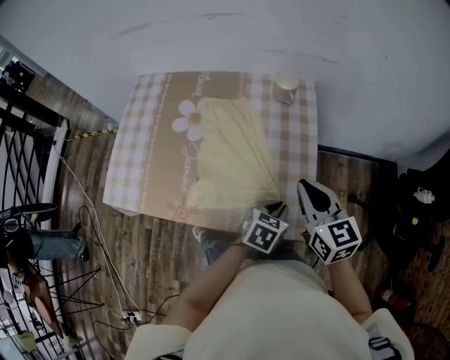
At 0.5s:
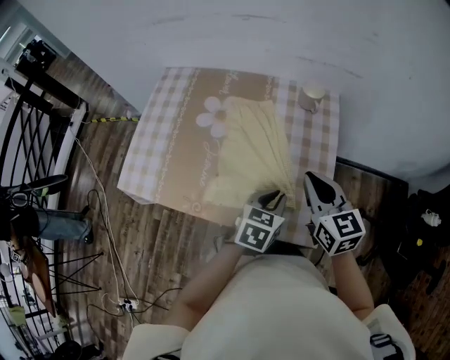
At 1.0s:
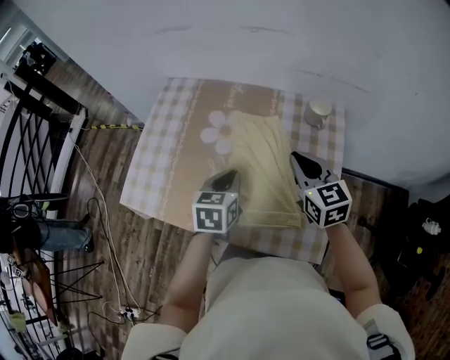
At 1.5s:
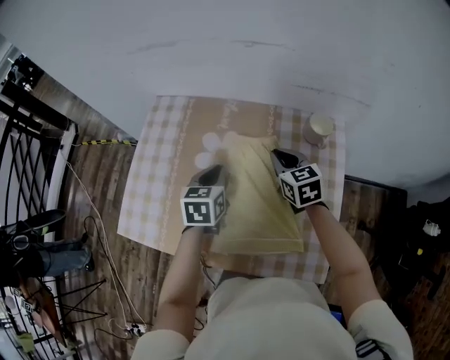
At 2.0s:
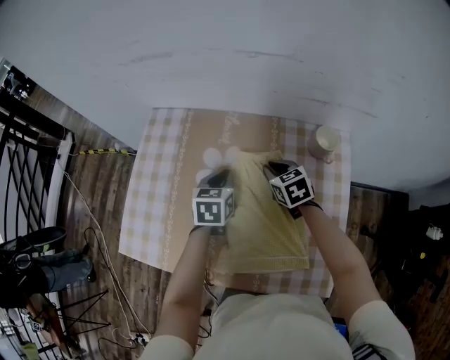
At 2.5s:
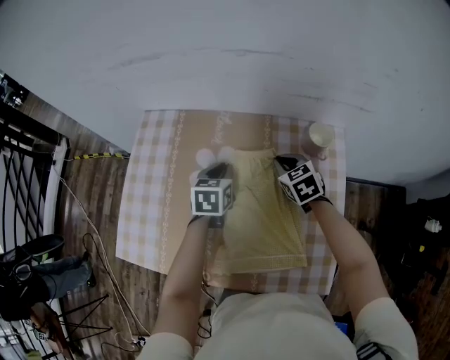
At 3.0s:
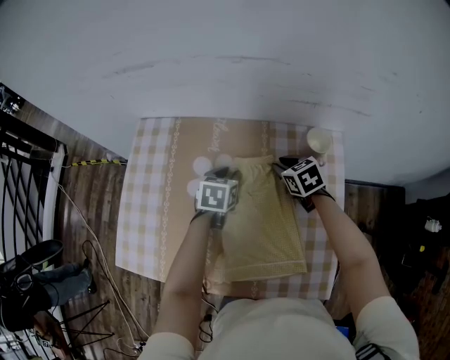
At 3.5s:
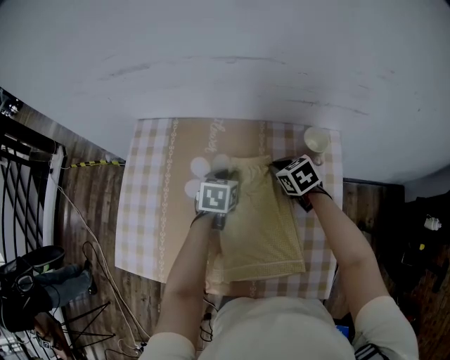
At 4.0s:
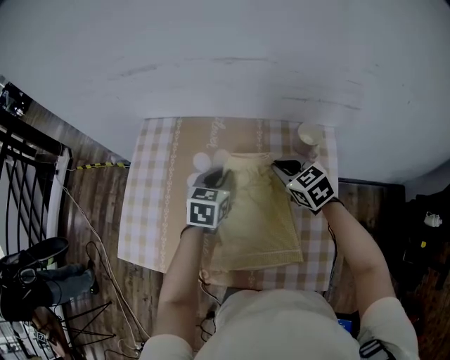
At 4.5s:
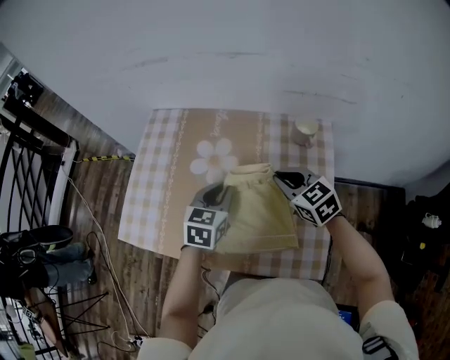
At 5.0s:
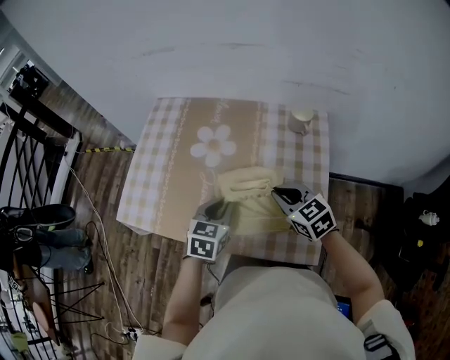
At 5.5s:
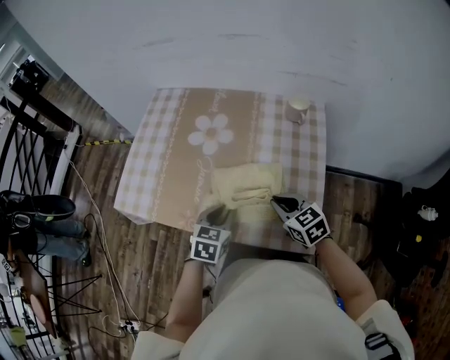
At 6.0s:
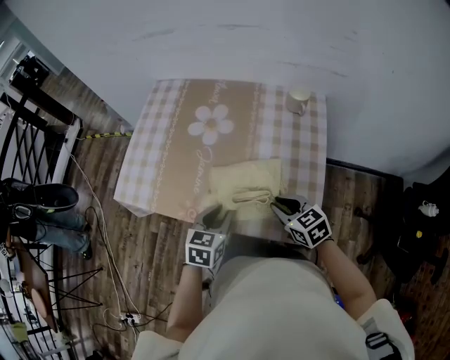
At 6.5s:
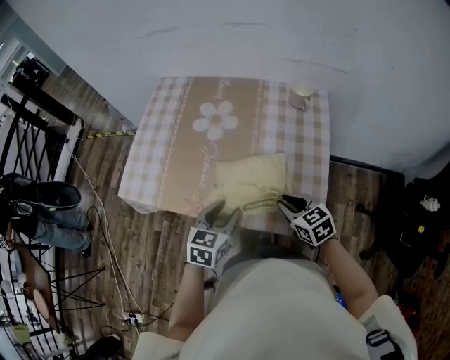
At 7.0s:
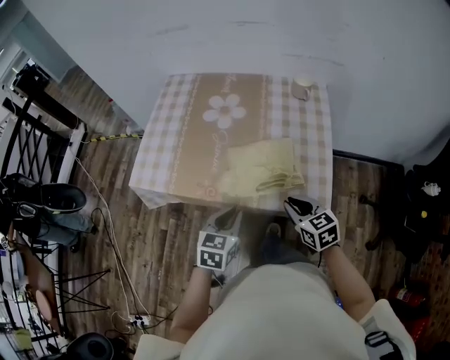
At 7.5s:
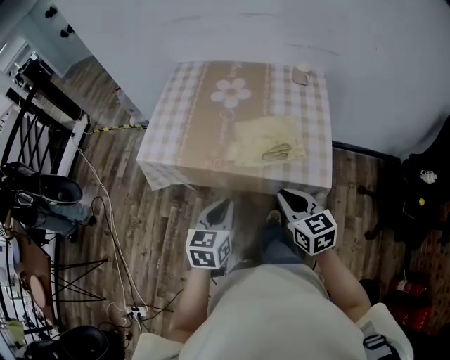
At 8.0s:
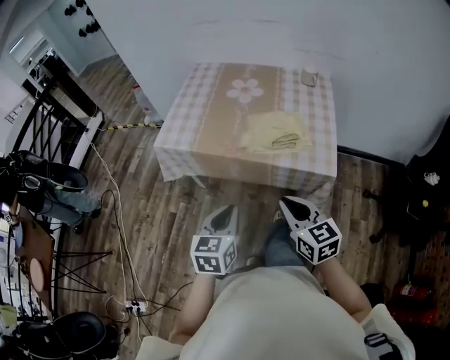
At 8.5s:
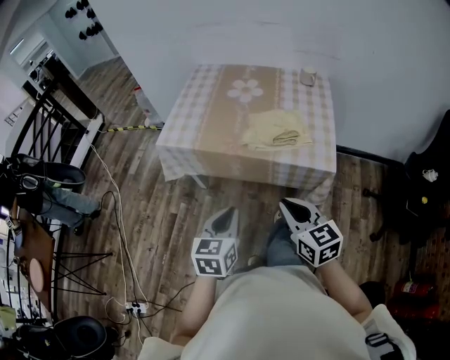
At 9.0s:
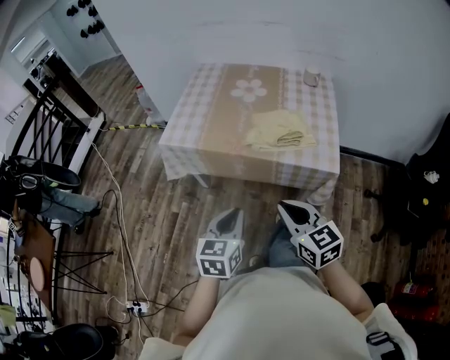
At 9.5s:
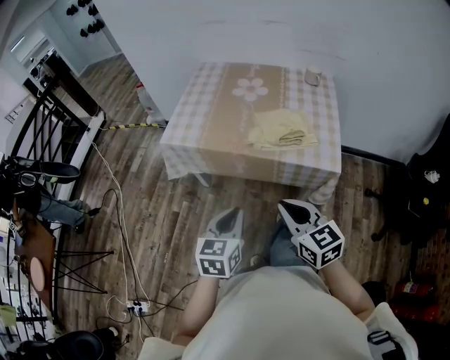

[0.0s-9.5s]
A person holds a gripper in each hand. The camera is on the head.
0.0s to 2.0s: The left gripper heads forward and to the left, covering about 40 cm, and rotates about 30 degrees, while the right gripper moves forward, downward and to the left, some 35 cm, and rotates about 30 degrees.
2.0s to 4.0s: The right gripper travels upward by some 10 cm.
4.0s to 5.5s: Both grippers move backward, about 25 cm.
5.5s to 7.5s: The right gripper moves backward and to the left, some 20 cm. Meanwhile the left gripper is displaced backward, to the left and upward by about 25 cm, and opens, then closes again.
7.5s to 9.5s: The two grippers go approximately 15 cm backward and to the left.

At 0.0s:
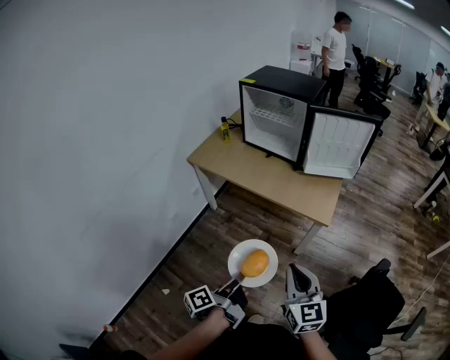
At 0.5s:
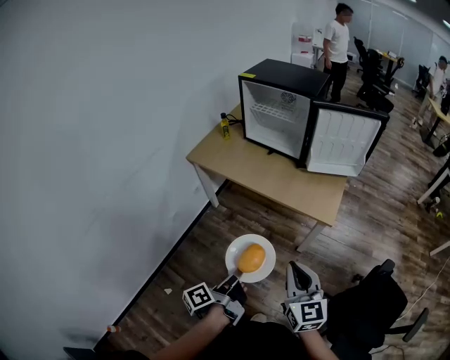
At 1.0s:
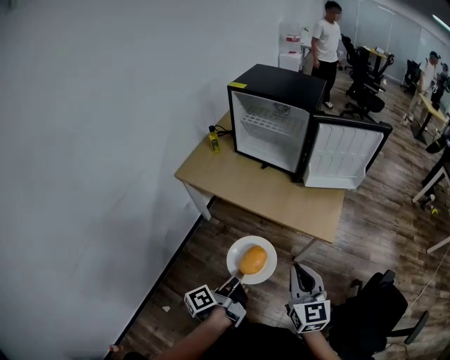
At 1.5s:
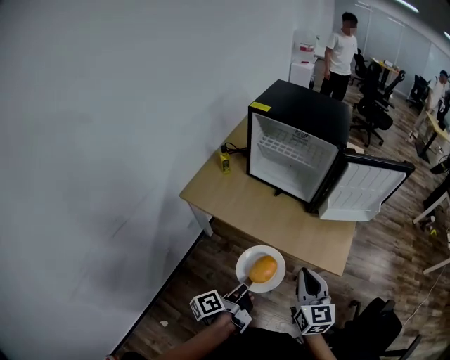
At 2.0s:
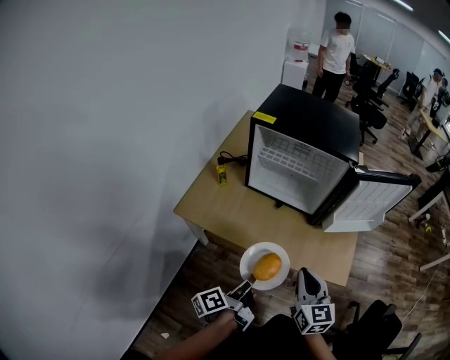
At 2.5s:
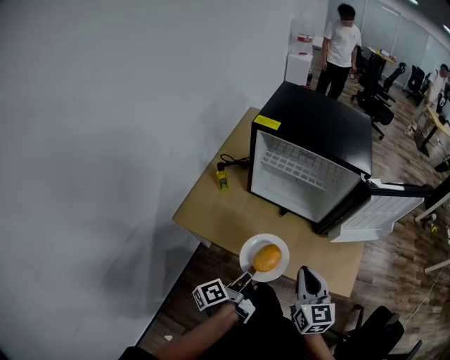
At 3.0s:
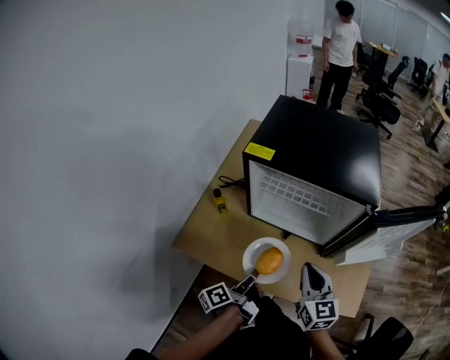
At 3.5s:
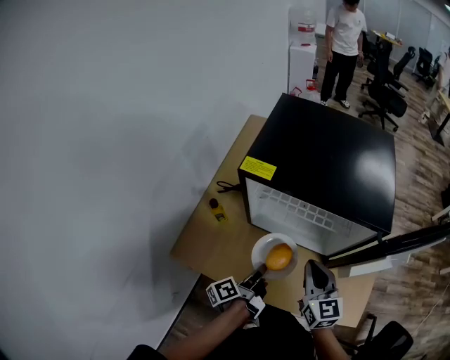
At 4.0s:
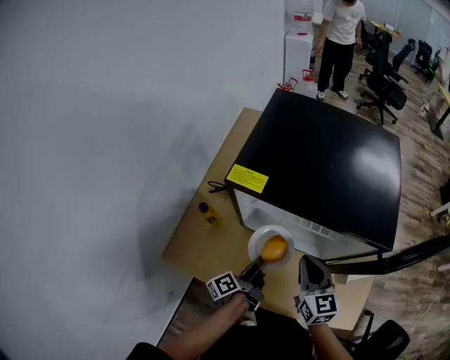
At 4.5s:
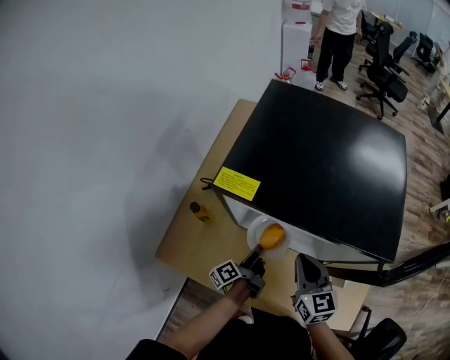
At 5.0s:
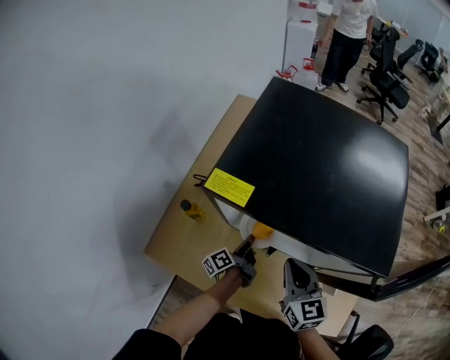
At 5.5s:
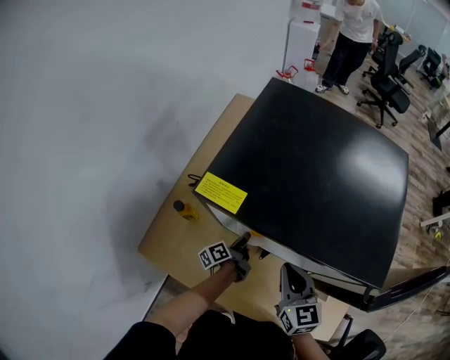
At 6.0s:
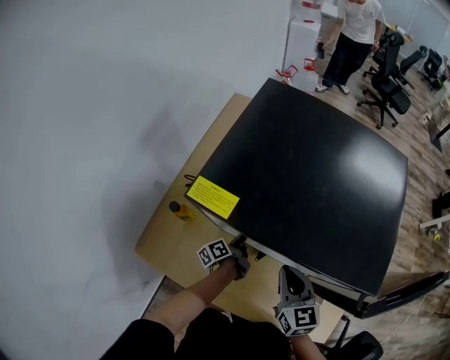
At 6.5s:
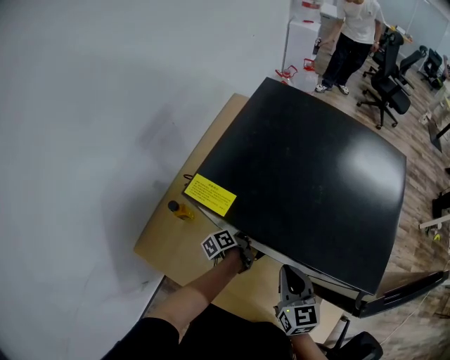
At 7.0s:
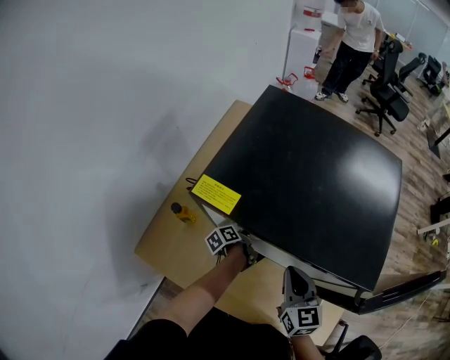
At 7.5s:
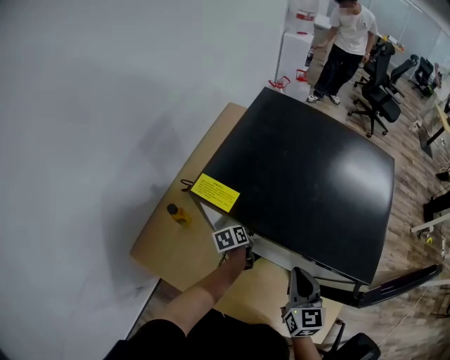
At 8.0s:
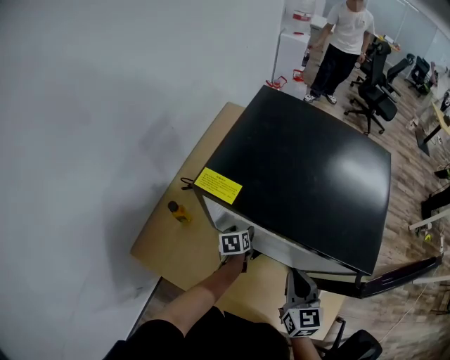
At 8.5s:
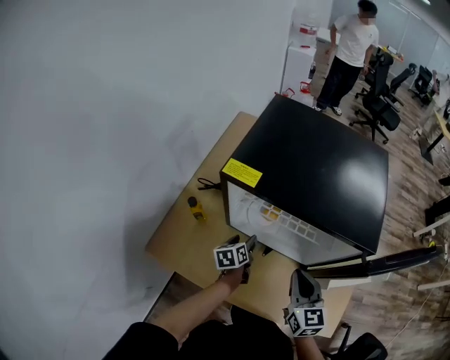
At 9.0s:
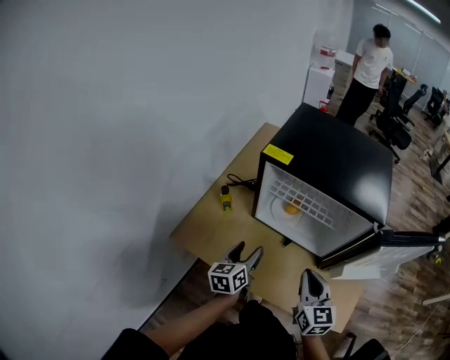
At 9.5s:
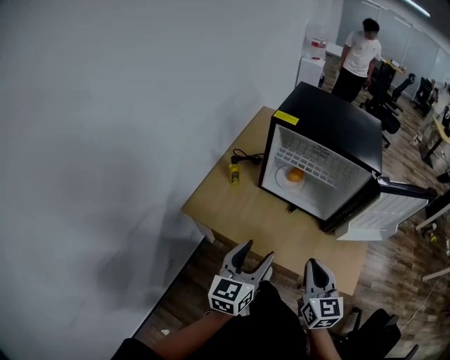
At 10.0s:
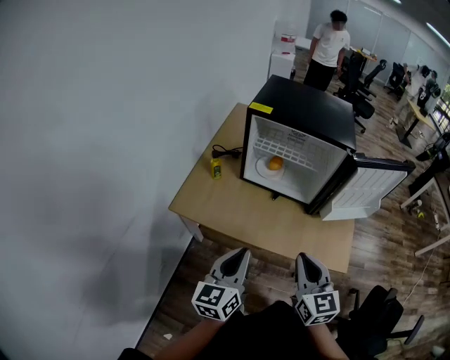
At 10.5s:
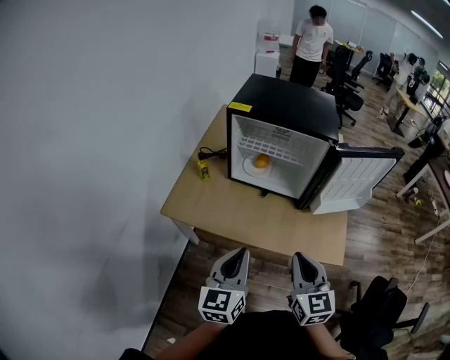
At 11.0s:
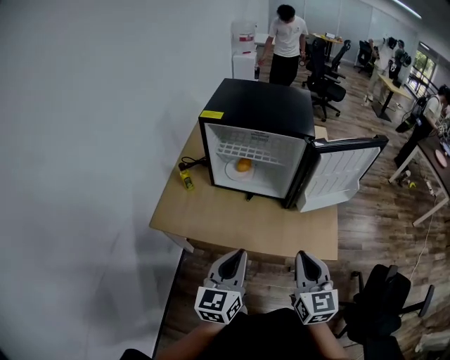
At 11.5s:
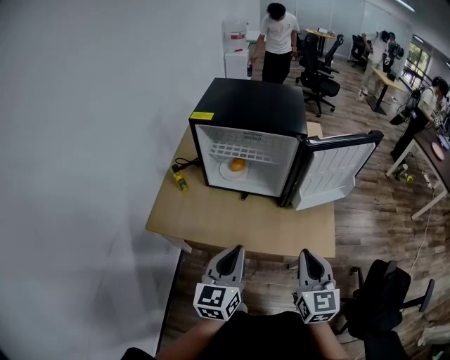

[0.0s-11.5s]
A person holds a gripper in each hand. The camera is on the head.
0.0s to 2.0s: The two grippers go about 35 cm forward.
2.0s to 4.0s: Both grippers move forward, approximately 35 cm.
4.0s to 6.0s: The left gripper heads downward and forward, covering roughly 20 cm. Meanwhile the right gripper moves some 5 cm.
6.0s to 7.5s: The left gripper rotates about 30 degrees, and opens its fingers.
7.5s to 9.5s: The left gripper heads backward and upward, covering approximately 50 cm, and angles its fingers upward, by some 30 degrees, while the right gripper shifts some 30 cm backward.
9.5s to 11.5s: The left gripper is displaced to the right by roughly 10 cm, and closes; the right gripper goes some 10 cm to the right and backward.

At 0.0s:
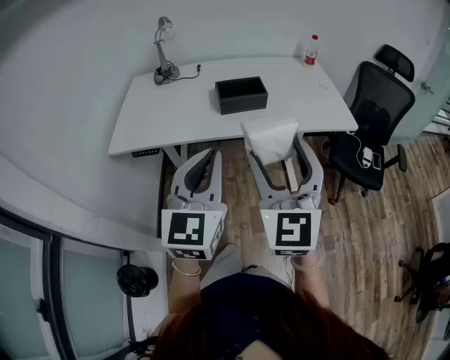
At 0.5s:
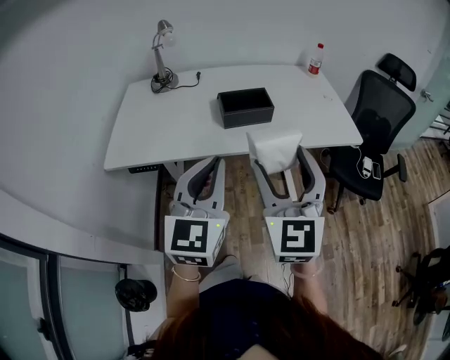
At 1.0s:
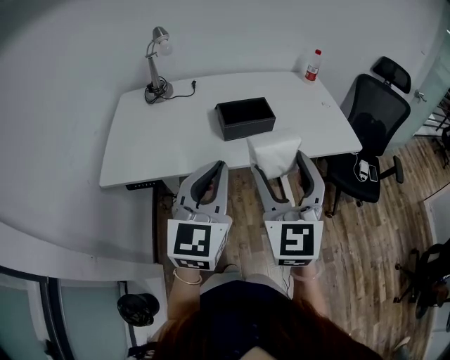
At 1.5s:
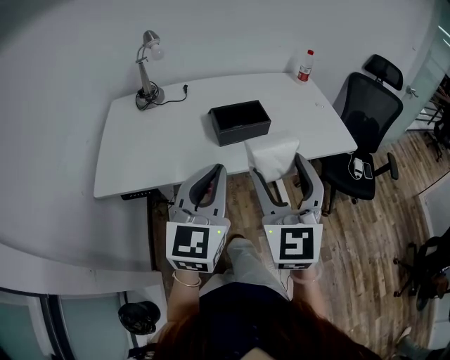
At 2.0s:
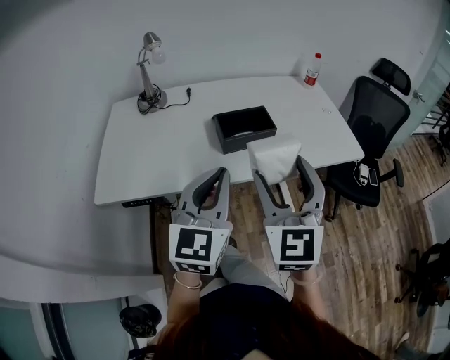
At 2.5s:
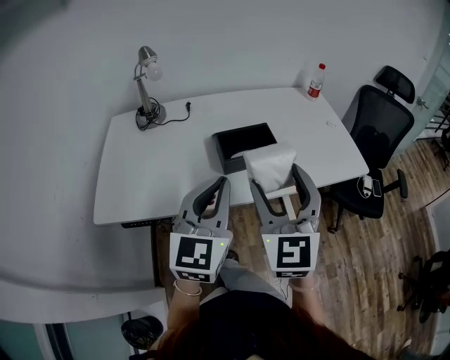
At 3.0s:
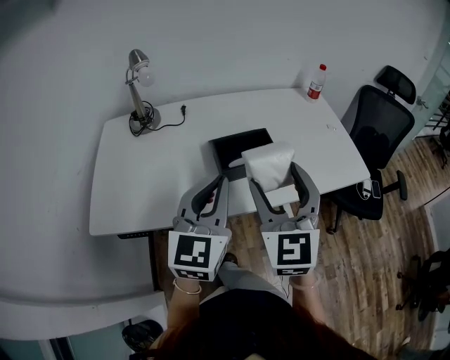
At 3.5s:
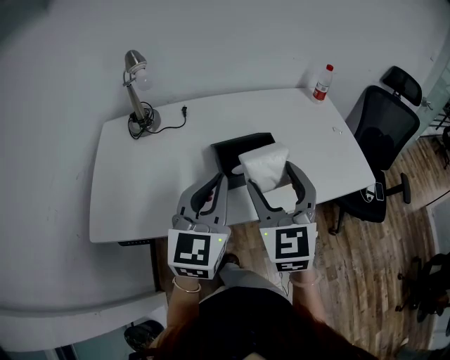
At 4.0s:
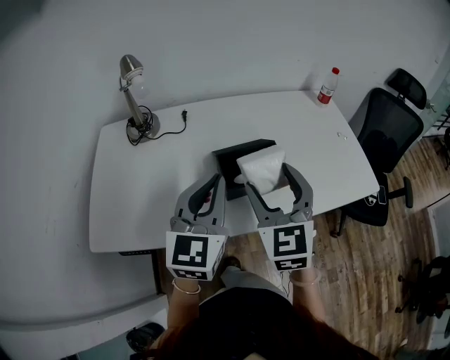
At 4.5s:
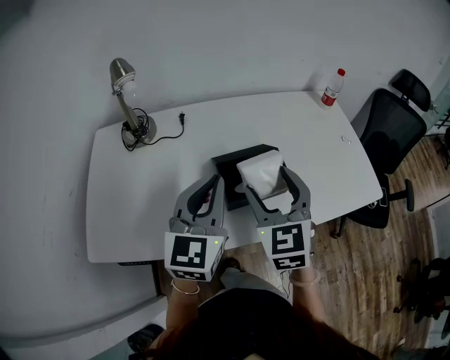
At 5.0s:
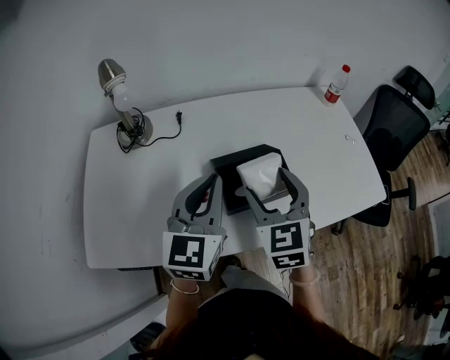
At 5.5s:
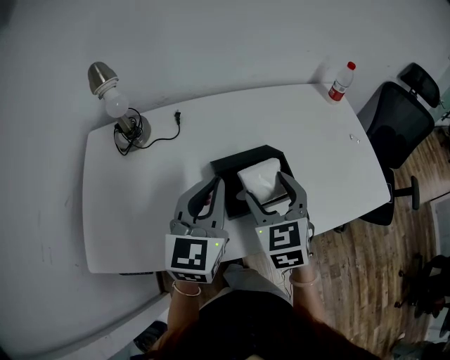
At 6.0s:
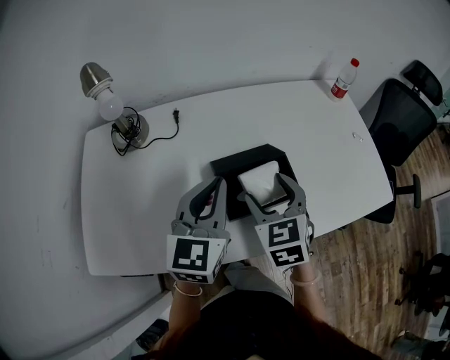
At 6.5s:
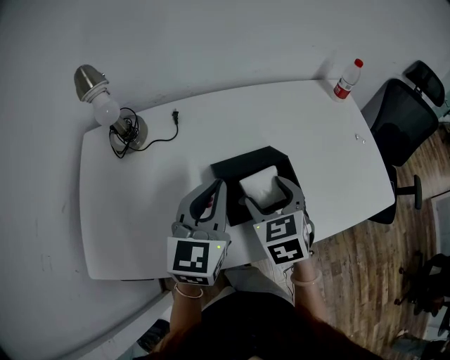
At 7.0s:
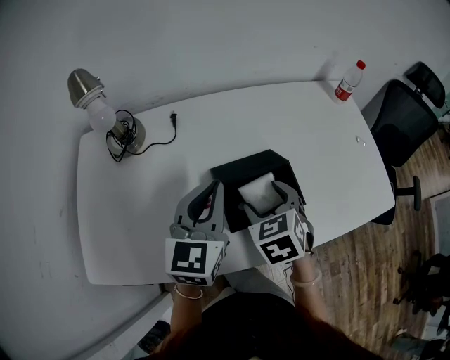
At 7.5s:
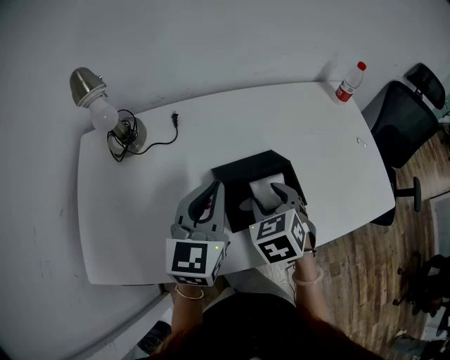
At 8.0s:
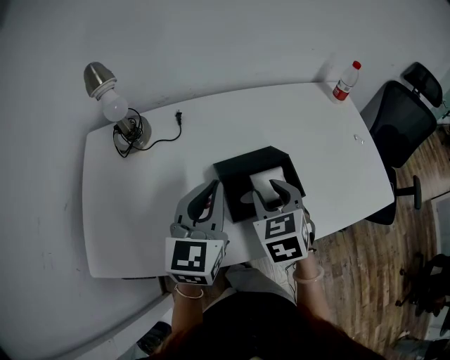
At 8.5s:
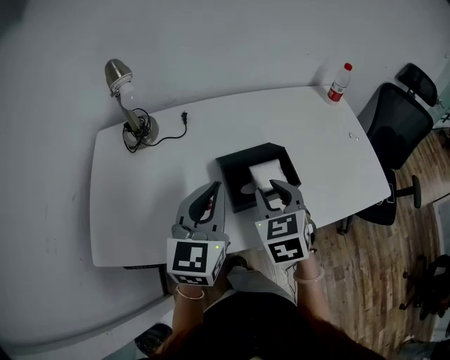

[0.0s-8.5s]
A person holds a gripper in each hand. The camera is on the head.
0.0s to 2.0s: The right gripper goes some 15 cm forward and to the left; the left gripper is displaced forward by approximately 15 cm.
2.0s to 4.0s: Both grippers move forward, approximately 20 cm.
4.0s to 6.5s: The right gripper travels downward and forward by roughly 15 cm, and swivels roughly 30 degrees; the left gripper heads forward and downward, covering roughly 15 cm.
6.5s to 8.5s: The right gripper moves some 5 cm, and closes, while the left gripper heads backward, covering approximately 5 cm.
